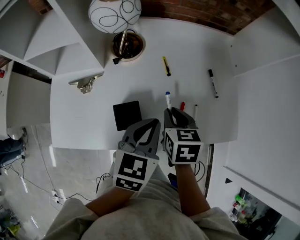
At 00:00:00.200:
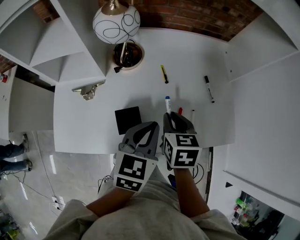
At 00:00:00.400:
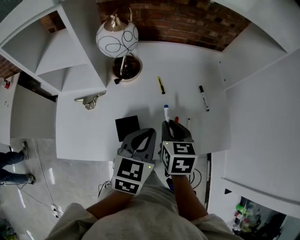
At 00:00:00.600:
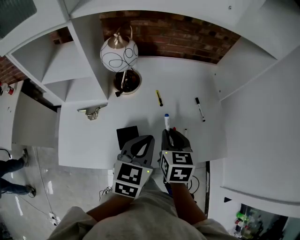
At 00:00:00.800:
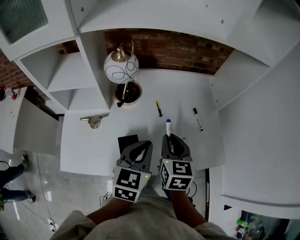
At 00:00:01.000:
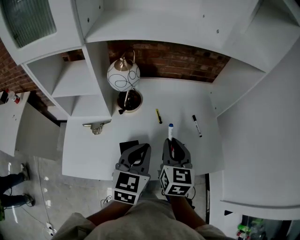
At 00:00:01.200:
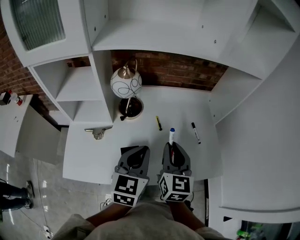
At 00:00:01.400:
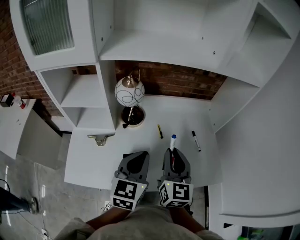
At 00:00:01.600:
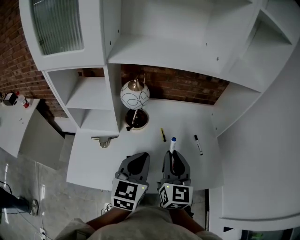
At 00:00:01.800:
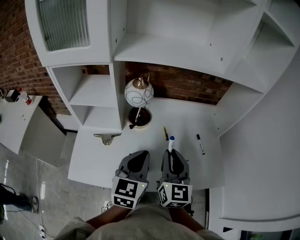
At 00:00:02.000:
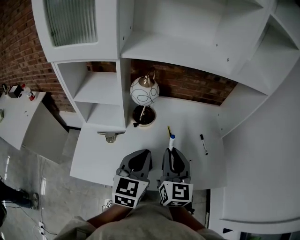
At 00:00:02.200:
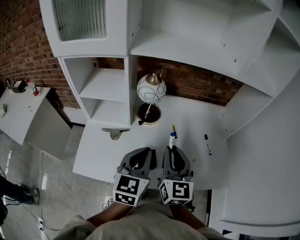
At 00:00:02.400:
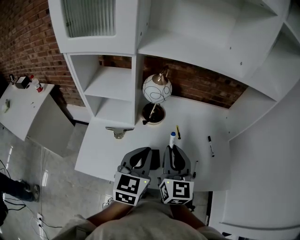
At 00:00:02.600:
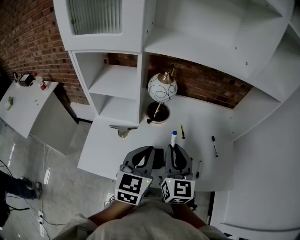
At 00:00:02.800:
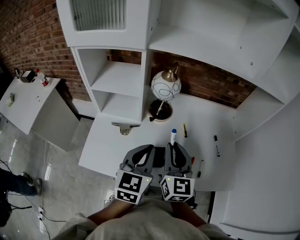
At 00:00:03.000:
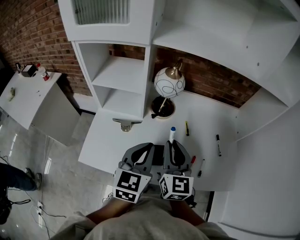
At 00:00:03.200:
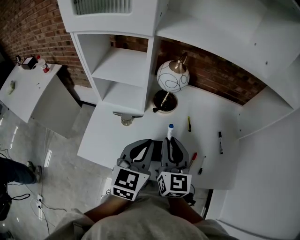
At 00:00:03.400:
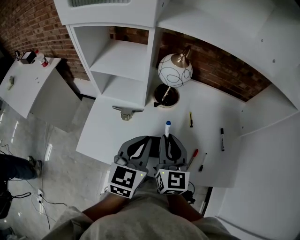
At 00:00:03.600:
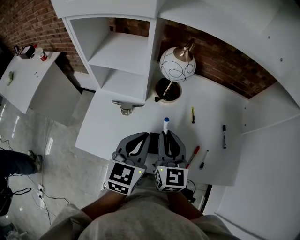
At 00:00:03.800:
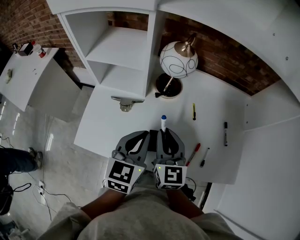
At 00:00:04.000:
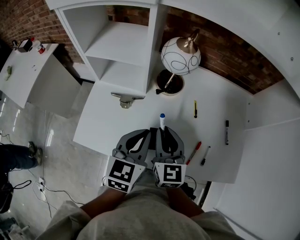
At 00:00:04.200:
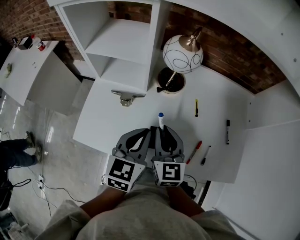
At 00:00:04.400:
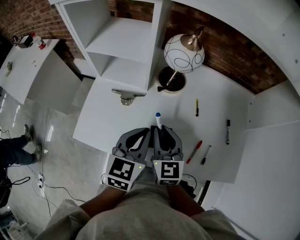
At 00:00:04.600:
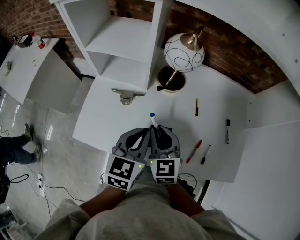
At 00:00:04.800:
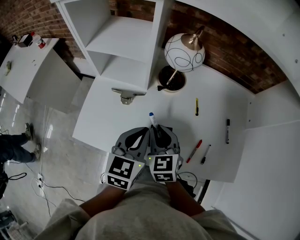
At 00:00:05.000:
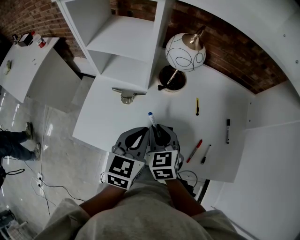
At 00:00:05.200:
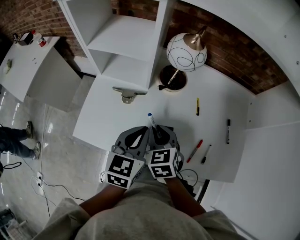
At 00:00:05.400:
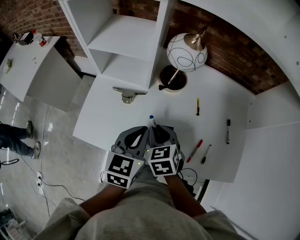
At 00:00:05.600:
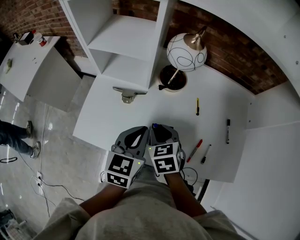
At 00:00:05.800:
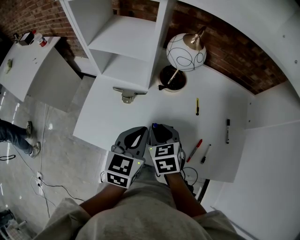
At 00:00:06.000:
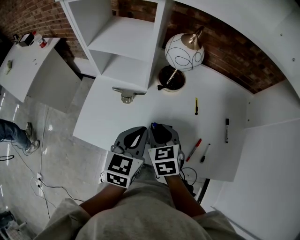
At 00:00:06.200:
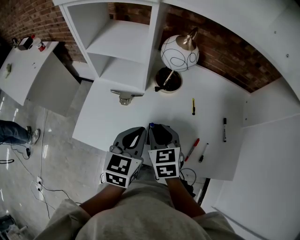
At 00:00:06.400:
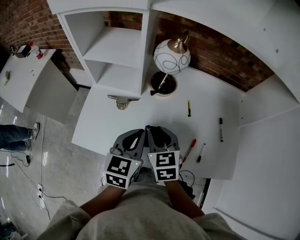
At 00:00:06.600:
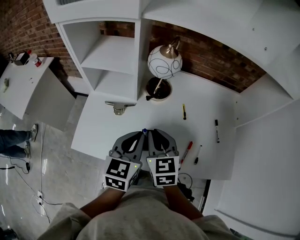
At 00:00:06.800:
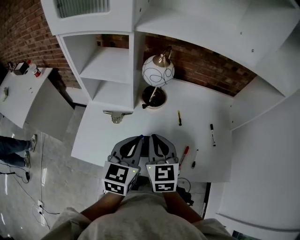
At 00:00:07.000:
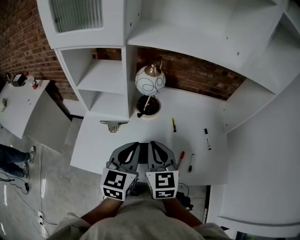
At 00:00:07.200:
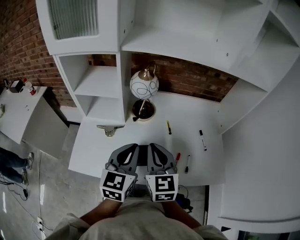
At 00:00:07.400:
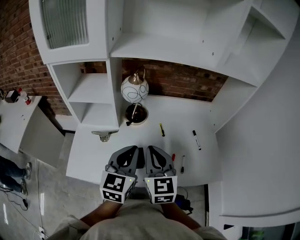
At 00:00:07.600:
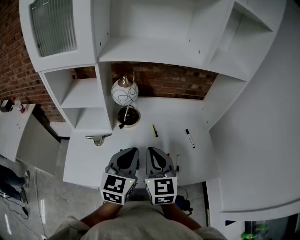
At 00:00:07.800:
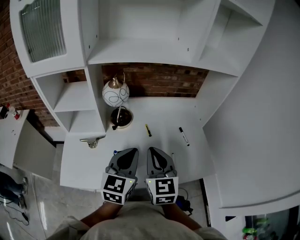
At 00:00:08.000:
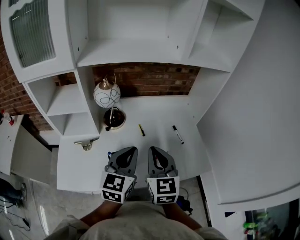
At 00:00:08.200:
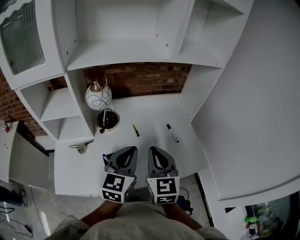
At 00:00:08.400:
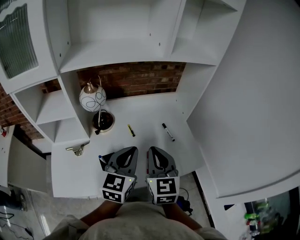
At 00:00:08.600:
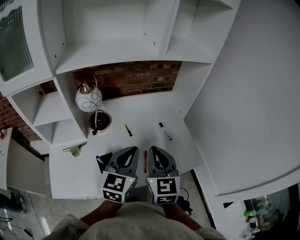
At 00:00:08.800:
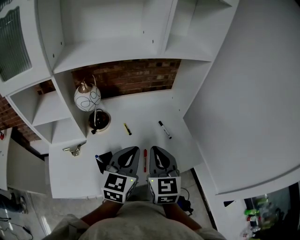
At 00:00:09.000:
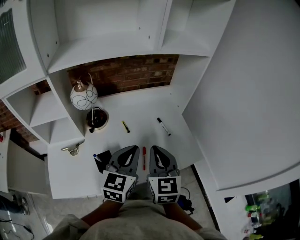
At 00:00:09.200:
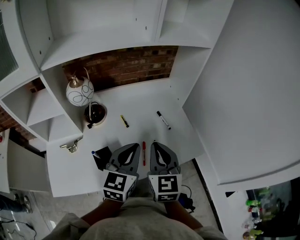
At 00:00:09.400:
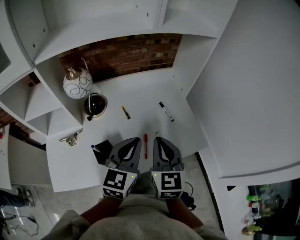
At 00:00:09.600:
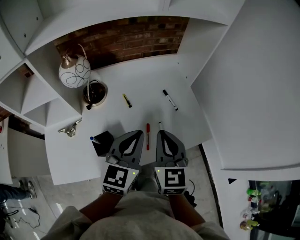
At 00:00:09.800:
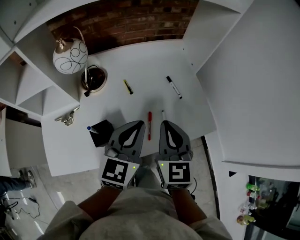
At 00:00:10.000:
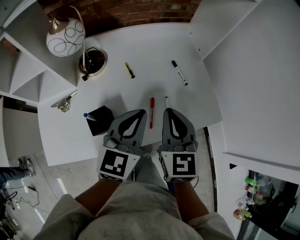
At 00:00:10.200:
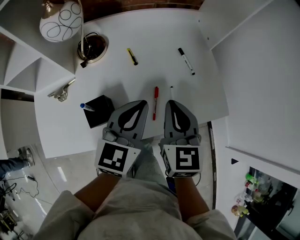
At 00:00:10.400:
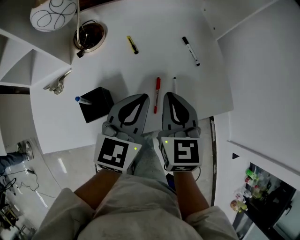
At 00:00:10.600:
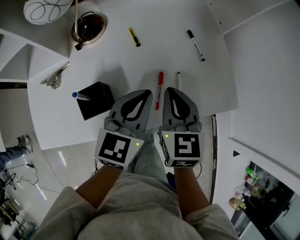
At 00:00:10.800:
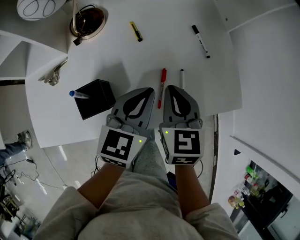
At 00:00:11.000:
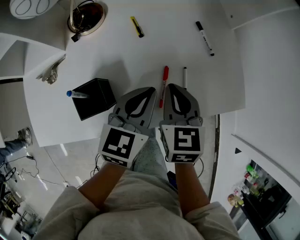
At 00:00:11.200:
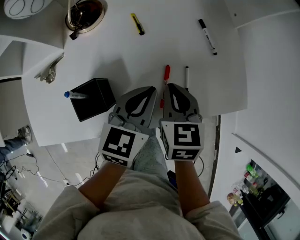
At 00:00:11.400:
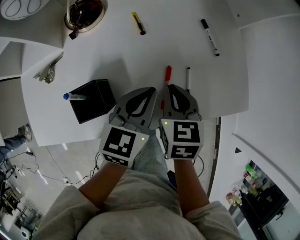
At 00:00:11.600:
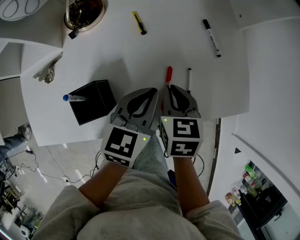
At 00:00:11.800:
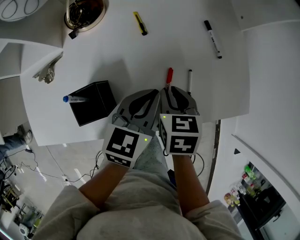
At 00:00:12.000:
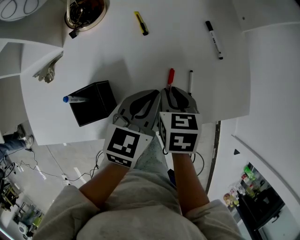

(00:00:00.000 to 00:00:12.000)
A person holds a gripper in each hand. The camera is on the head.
00:00:00.000 - 00:00:01.600: Both grippers travel together upward, approximately 15 cm. The left gripper rotates approximately 20 degrees. The right gripper angles its fingers upward, by roughly 50 degrees.
00:00:01.600 - 00:00:03.000: Both grippers travel together to the left, about 10 cm.
00:00:03.000 - 00:00:04.400: Both grippers travel together downward, some 10 cm.
00:00:04.400 - 00:00:06.000: The right gripper changes its angle by about 30 degrees.
00:00:06.000 - 00:00:07.600: Both grippers travel together upward and to the right, about 20 cm. The left gripper rotates approximately 20 degrees; the right gripper tilts its fingers some 30 degrees upward, and closes its fingers.
00:00:07.600 - 00:00:09.000: The grippers both shift to the right by some 10 cm.
00:00:09.000 - 00:00:10.400: Both grippers move downward, some 15 cm.
00:00:10.400 - 00:00:12.000: The grippers both shift downward by some 15 cm. The right gripper tilts its fingers about 30 degrees downward.

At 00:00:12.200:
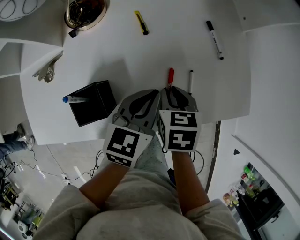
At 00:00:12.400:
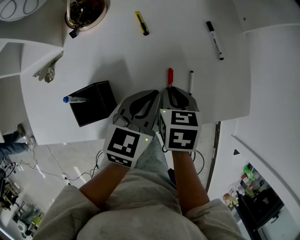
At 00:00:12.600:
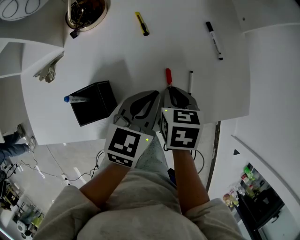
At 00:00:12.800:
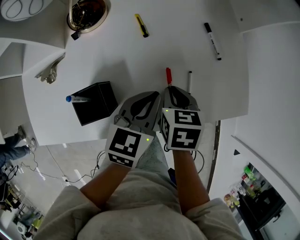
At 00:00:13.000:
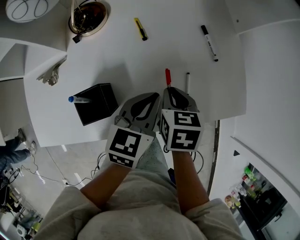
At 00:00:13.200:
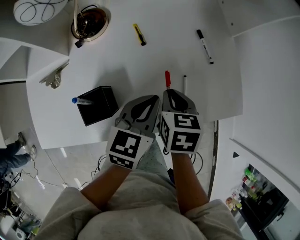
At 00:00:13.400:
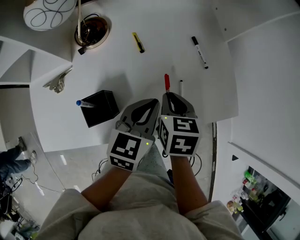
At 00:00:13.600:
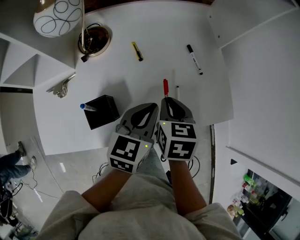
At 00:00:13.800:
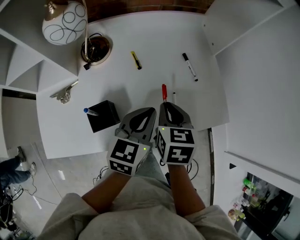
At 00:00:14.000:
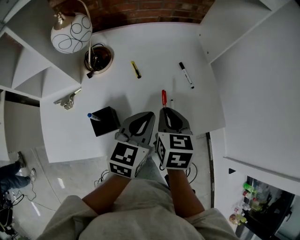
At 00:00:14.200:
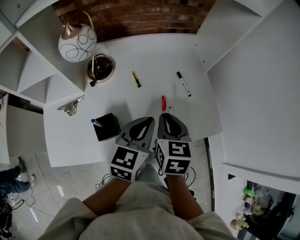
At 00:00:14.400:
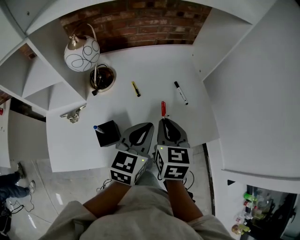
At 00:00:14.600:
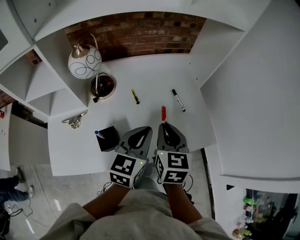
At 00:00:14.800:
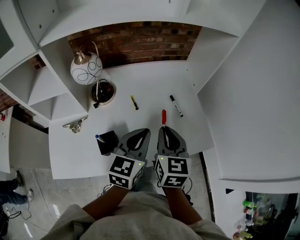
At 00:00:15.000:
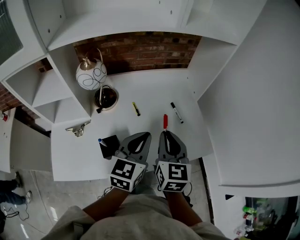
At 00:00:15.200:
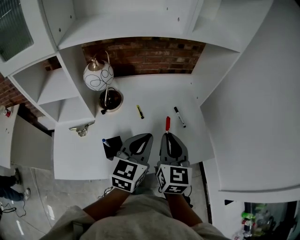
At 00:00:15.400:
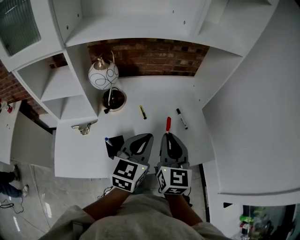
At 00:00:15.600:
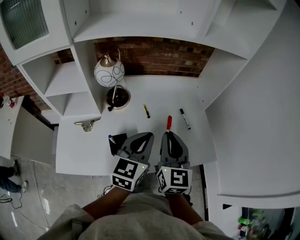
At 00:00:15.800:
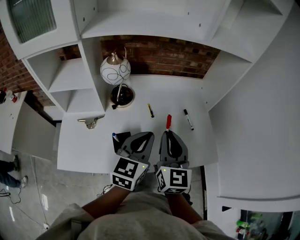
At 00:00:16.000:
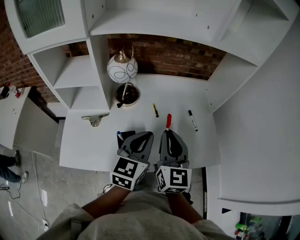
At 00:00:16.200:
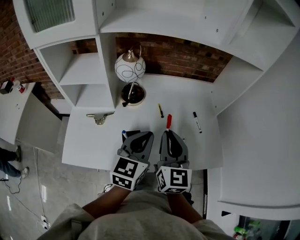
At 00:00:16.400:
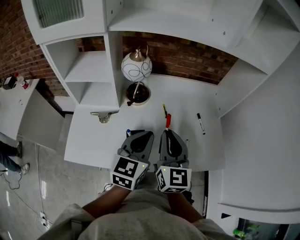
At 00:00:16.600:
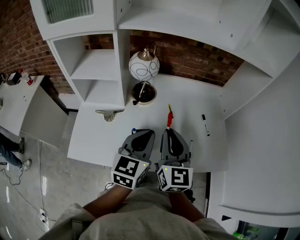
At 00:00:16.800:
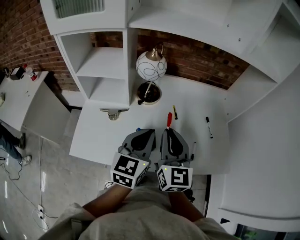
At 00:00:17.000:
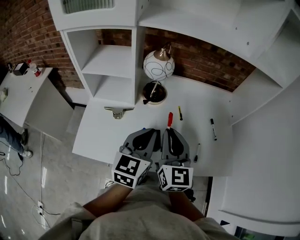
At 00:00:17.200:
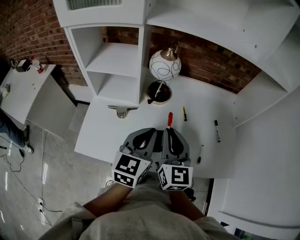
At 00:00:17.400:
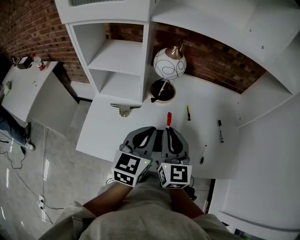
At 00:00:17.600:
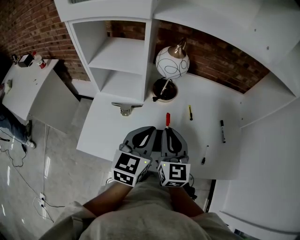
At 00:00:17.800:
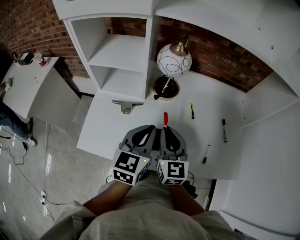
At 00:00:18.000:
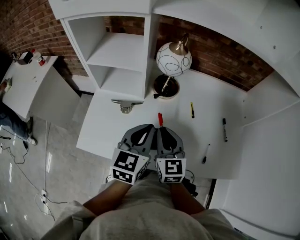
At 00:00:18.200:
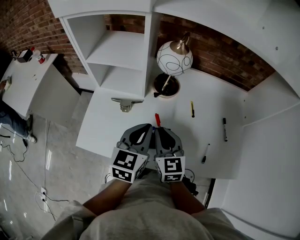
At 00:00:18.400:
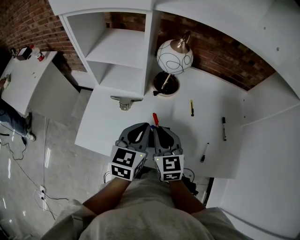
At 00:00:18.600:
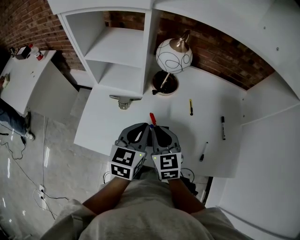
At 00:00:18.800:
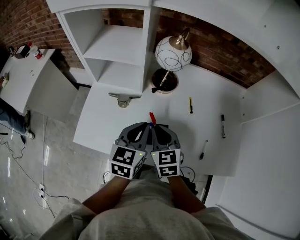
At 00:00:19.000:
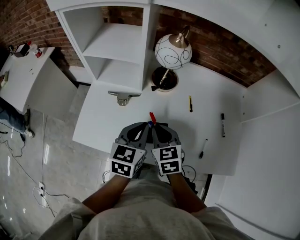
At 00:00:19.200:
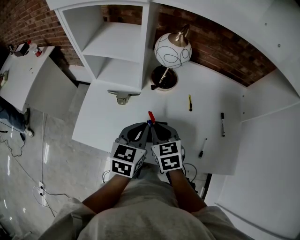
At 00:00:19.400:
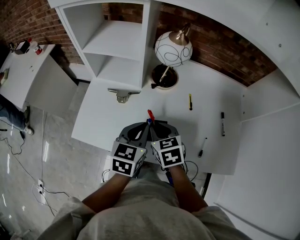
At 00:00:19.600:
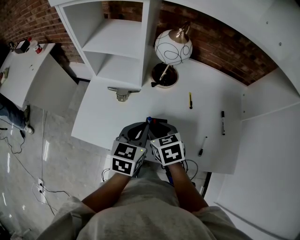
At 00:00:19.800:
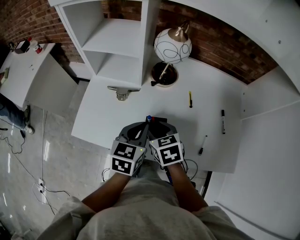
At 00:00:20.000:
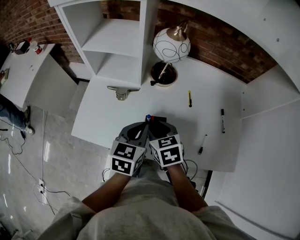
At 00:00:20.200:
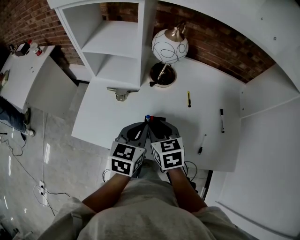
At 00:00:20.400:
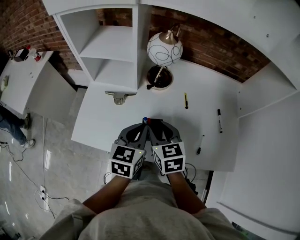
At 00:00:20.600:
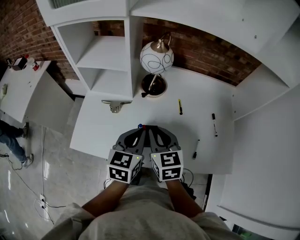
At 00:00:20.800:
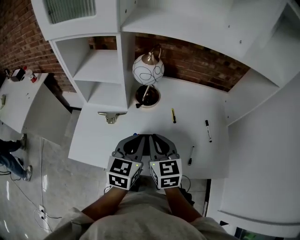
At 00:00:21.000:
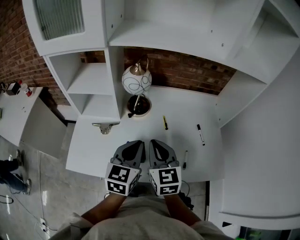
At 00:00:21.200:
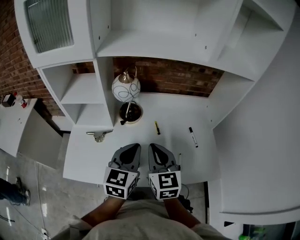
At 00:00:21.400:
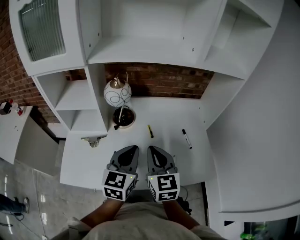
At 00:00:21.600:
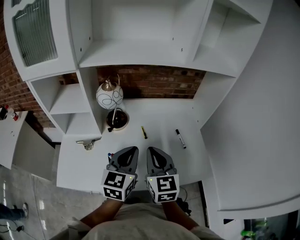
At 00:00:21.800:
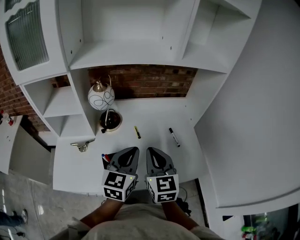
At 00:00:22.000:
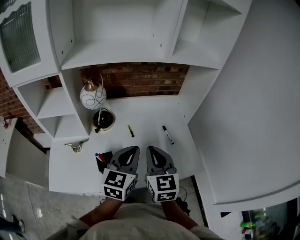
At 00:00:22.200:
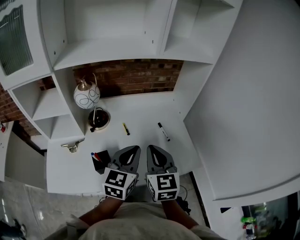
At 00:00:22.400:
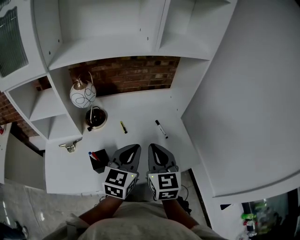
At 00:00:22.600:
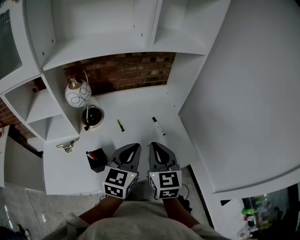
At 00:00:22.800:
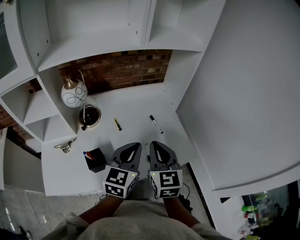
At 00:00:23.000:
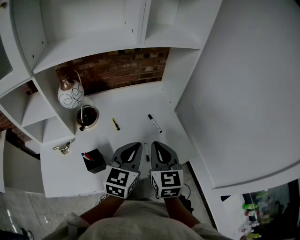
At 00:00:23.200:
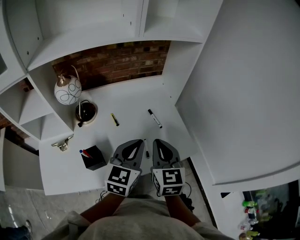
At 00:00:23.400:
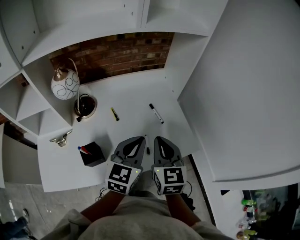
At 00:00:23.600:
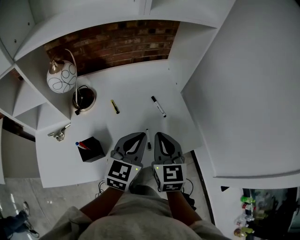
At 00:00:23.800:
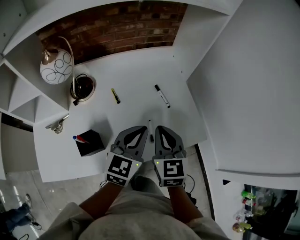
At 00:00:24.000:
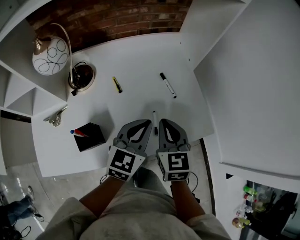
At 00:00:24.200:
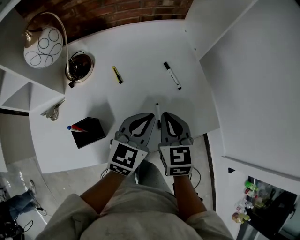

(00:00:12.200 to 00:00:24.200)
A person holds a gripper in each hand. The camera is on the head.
00:00:12.200 - 00:00:13.800: The two grippers go some 10 cm upward.
00:00:13.800 - 00:00:15.200: Both grippers move upward, about 15 cm. The right gripper points its fingers roughly 30 degrees further upward.
00:00:15.200 - 00:00:16.600: Both grippers move to the left, some 10 cm.
00:00:16.600 - 00:00:18.200: The right gripper goes about 15 cm downward and to the left, and rotates roughly 20 degrees. Meanwhile the left gripper heads to the left and downward, covering approximately 10 cm.
00:00:18.200 - 00:00:19.800: The grippers both shift downward by about 5 cm. The right gripper changes its angle by some 30 degrees, and opens its fingers.
00:00:19.800 - 00:00:21.200: Both grippers move upward and to the right, some 15 cm. The left gripper swivels roughly 20 degrees. Meanwhile the right gripper tilts its fingers some 40 degrees upward, and closes its fingers.
00:00:21.200 - 00:00:22.600: Both grippers travel together to the right, about 15 cm.
00:00:22.600 - 00:00:24.200: Both grippers travel together downward, roughly 15 cm.
